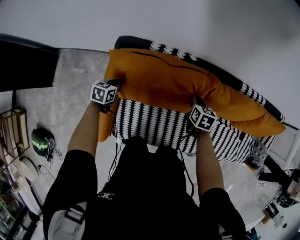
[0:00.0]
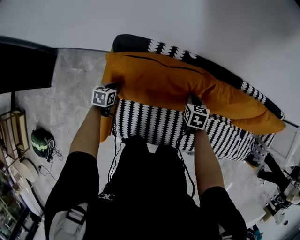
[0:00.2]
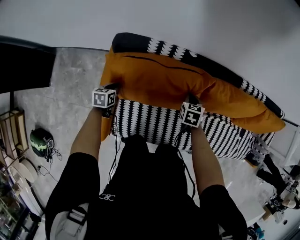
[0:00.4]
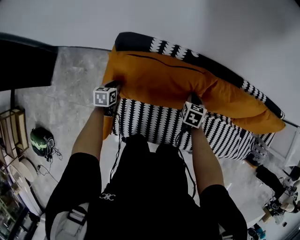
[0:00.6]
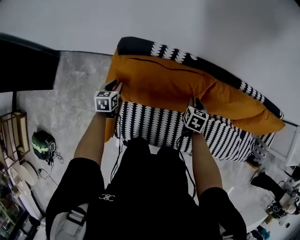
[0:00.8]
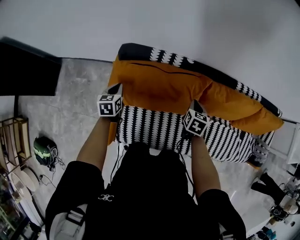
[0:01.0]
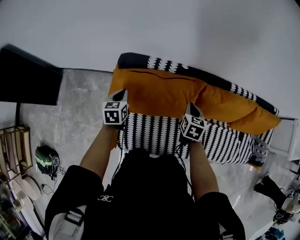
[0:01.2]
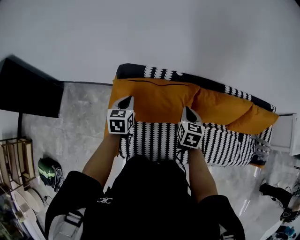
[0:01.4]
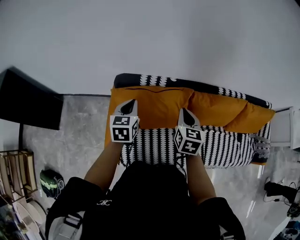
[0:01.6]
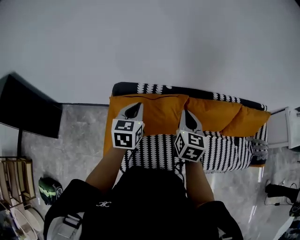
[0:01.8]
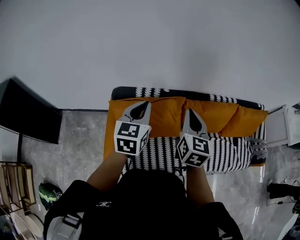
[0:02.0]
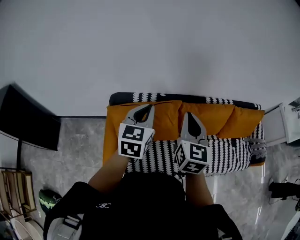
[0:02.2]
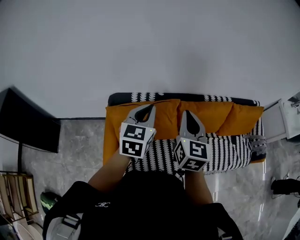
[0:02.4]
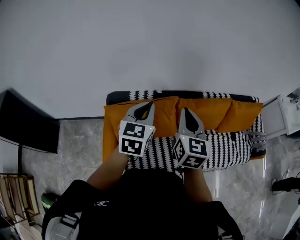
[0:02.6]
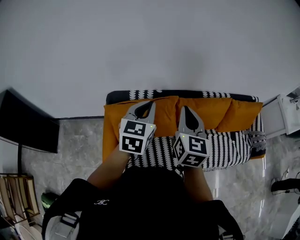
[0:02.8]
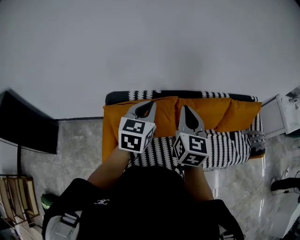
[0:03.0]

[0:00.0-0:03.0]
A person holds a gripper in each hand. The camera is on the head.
0:00.0 to 0:01.6: The left gripper goes about 30 cm upward, and swivels roughly 30 degrees. Meanwhile the right gripper moves upward and backward, some 25 cm, turns by roughly 20 degrees, and opens, then closes again.
0:01.6 to 0:03.0: The left gripper travels upward and to the right by about 20 cm, and swivels about 20 degrees. The right gripper travels upward by approximately 15 cm, and changes its angle by approximately 20 degrees.

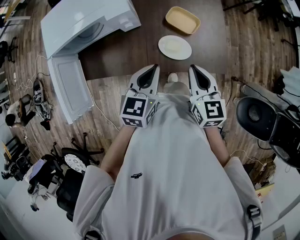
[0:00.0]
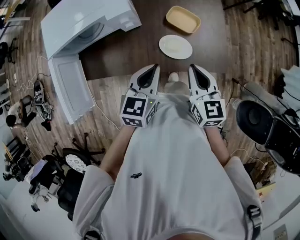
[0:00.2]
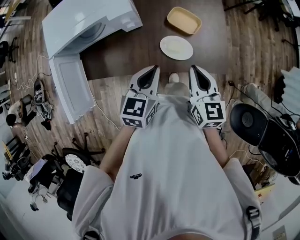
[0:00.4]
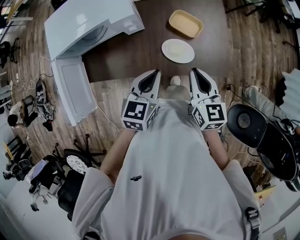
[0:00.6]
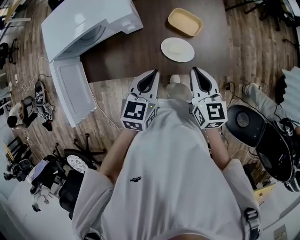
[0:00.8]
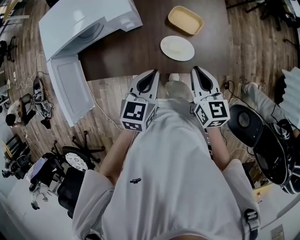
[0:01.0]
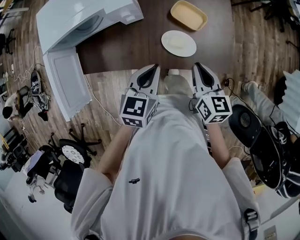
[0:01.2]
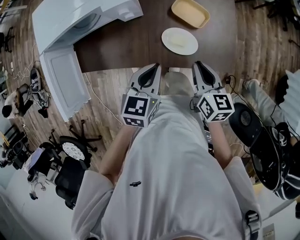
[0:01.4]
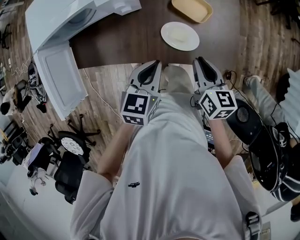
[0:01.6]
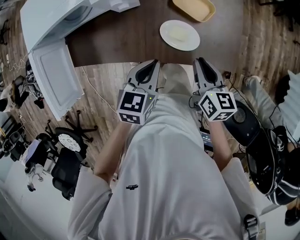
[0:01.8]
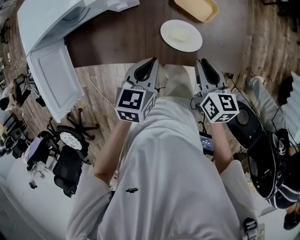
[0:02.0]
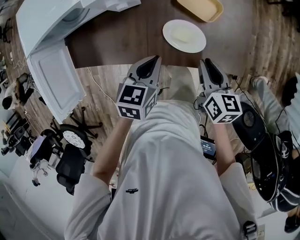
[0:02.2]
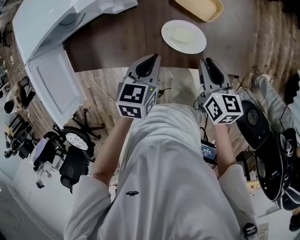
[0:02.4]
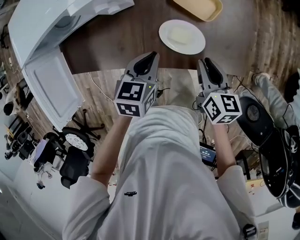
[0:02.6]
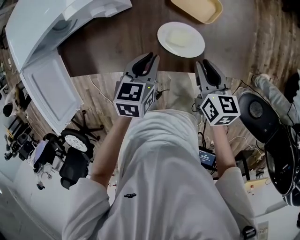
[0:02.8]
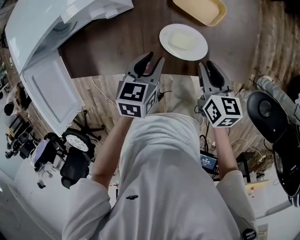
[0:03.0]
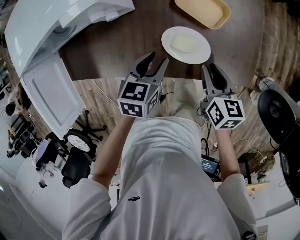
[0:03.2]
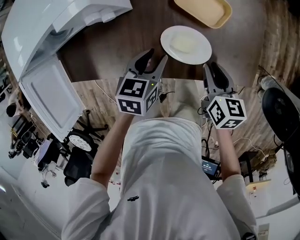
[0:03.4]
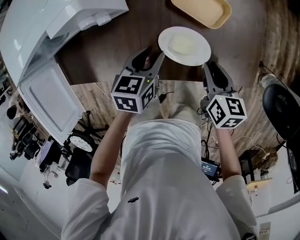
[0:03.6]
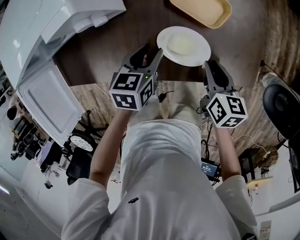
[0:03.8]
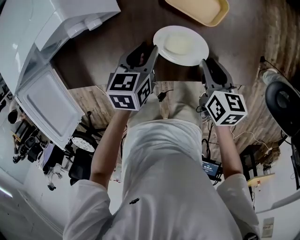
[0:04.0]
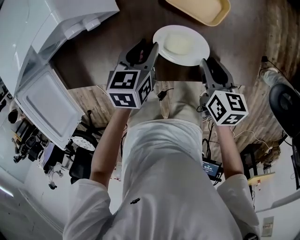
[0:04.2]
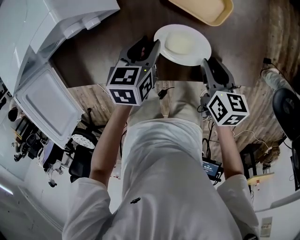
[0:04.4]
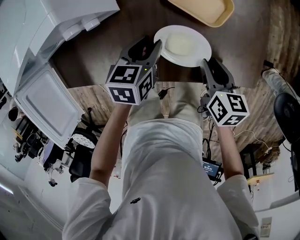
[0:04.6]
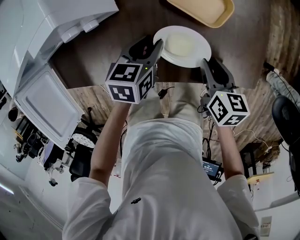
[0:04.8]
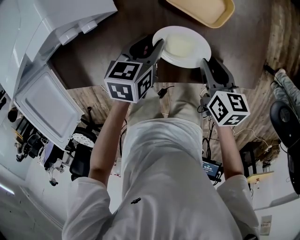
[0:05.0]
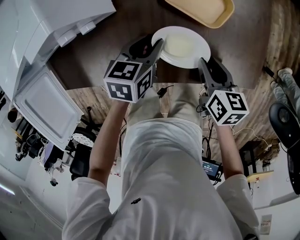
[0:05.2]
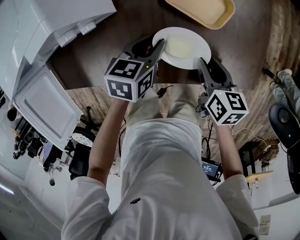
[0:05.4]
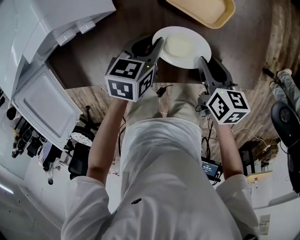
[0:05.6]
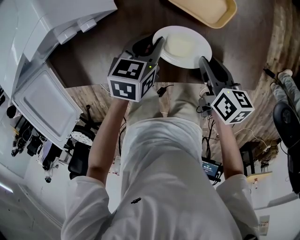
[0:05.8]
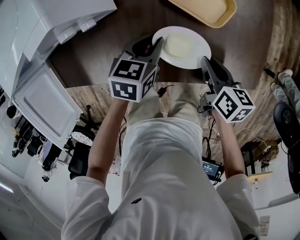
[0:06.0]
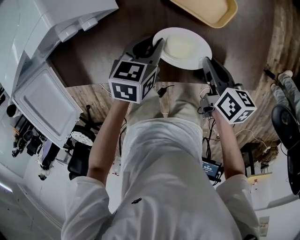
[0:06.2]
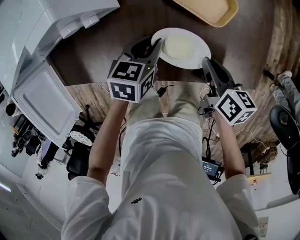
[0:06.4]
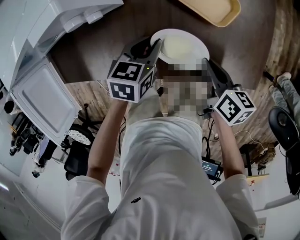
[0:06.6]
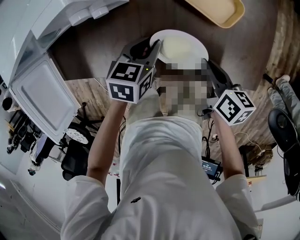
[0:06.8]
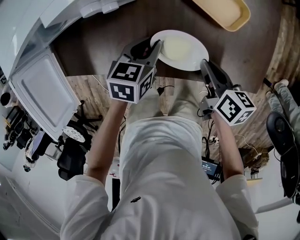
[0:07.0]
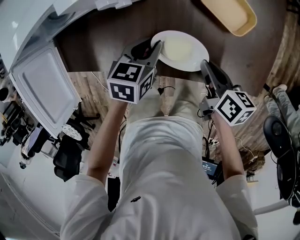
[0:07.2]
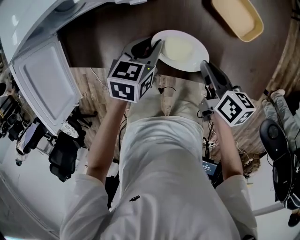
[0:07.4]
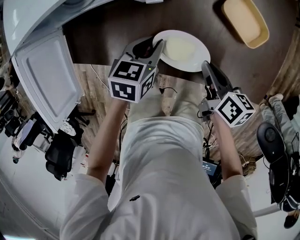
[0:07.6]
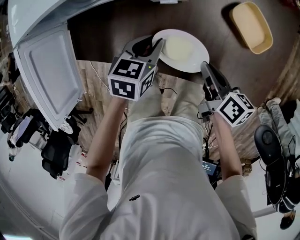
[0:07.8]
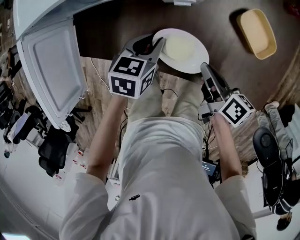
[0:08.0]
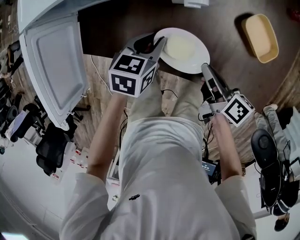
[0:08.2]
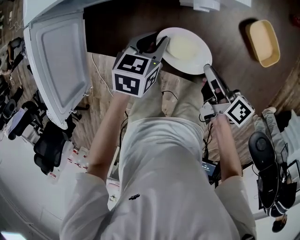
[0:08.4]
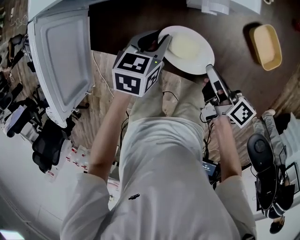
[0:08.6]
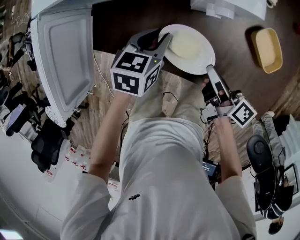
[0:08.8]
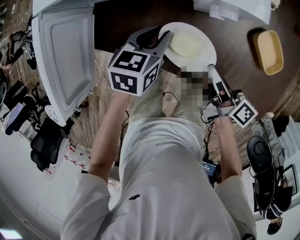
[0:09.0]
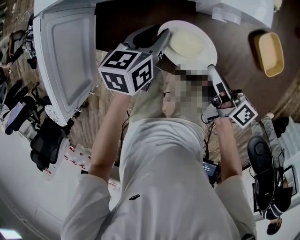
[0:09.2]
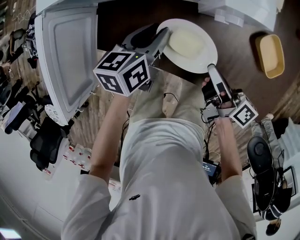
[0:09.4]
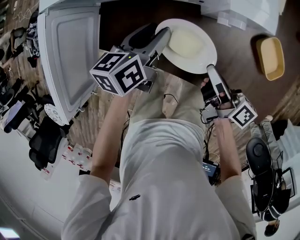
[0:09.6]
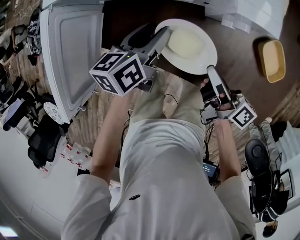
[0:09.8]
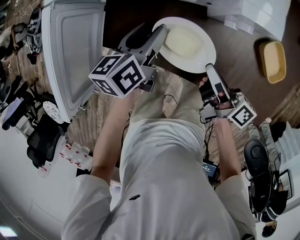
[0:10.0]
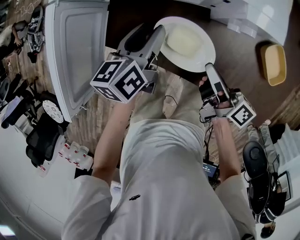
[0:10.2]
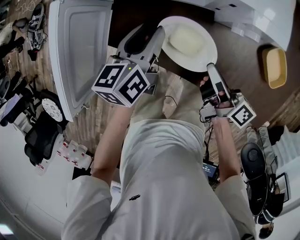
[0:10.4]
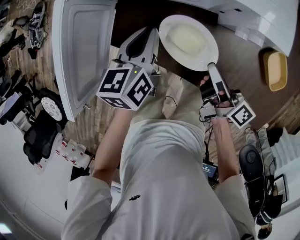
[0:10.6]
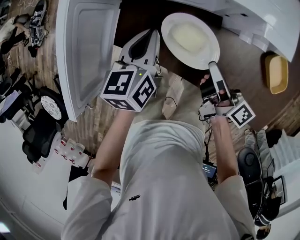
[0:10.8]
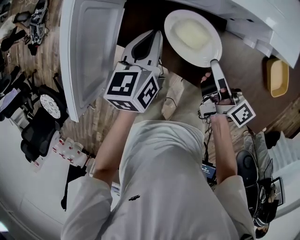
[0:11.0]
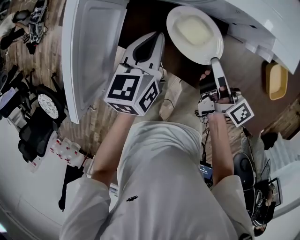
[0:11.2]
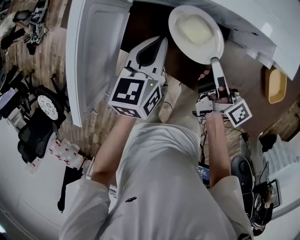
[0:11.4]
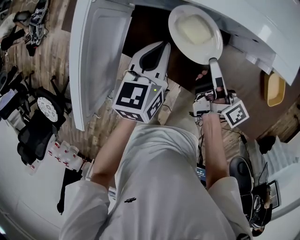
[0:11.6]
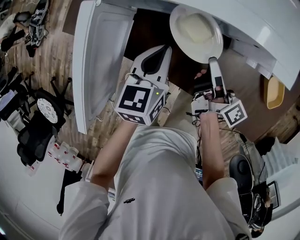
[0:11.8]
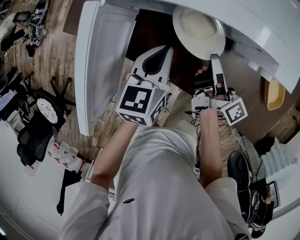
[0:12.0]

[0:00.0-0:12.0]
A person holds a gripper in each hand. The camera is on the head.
0:00.0 to 0:01.6: Both grippers move downward, some 10 cm.
0:01.6 to 0:03.0: Both grippers move downward, about 10 cm. The left gripper opens.
0:03.0 to 0:04.4: The right gripper is displaced downward by approximately 5 cm. The left gripper heads downward and forward, covering approximately 10 cm.
0:04.4 to 0:06.0: The grippers stay close to where they were, moving slightly.
0:06.0 to 0:07.6: Both grippers move to the left, about 10 cm.
0:07.6 to 0:09.0: The left gripper shifts some 5 cm to the left. The right gripper heads to the left and upward, covering about 10 cm, and rotates approximately 30 degrees.
0:09.0 to 0:10.4: The left gripper travels to the left and upward by some 10 cm, and changes its angle by approximately 30 degrees. Meanwhile the right gripper shifts about 5 cm to the left.
0:10.4 to 0:12.0: The left gripper closes up, while the right gripper is displaced forward and to the left by about 10 cm.

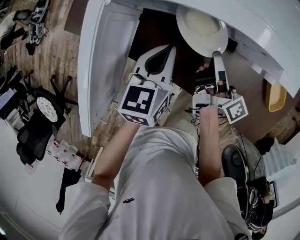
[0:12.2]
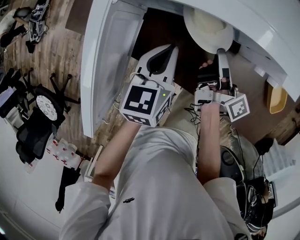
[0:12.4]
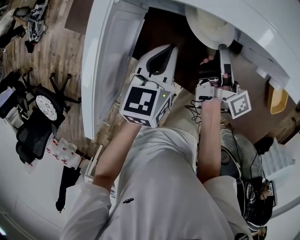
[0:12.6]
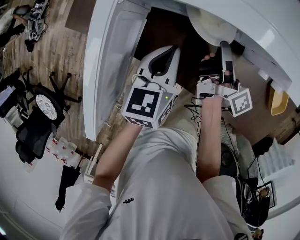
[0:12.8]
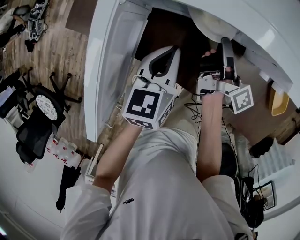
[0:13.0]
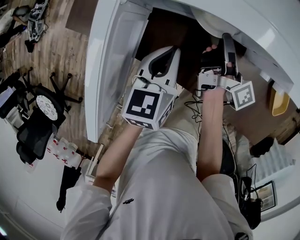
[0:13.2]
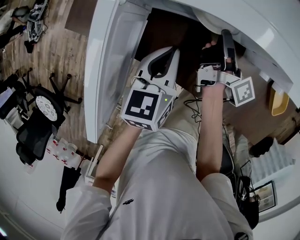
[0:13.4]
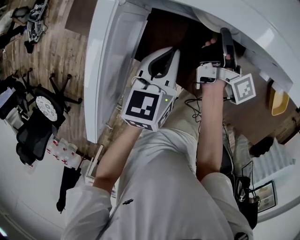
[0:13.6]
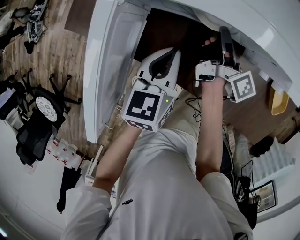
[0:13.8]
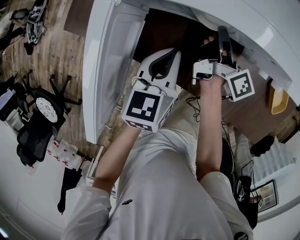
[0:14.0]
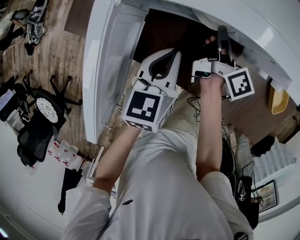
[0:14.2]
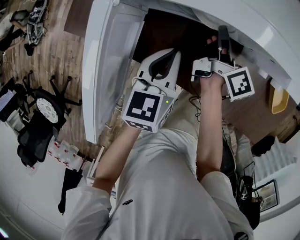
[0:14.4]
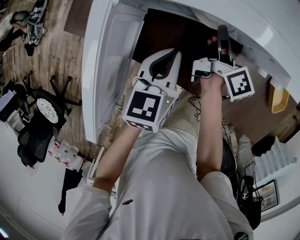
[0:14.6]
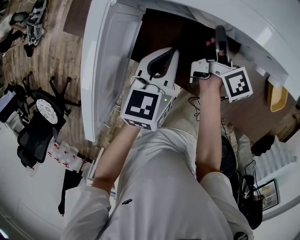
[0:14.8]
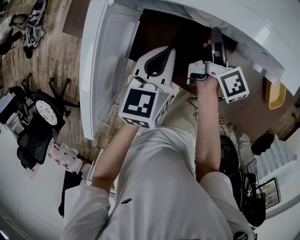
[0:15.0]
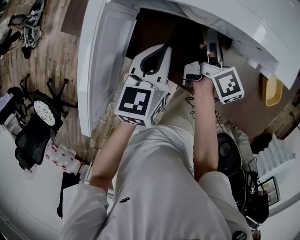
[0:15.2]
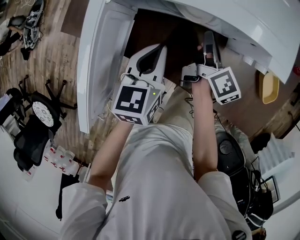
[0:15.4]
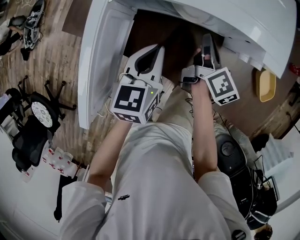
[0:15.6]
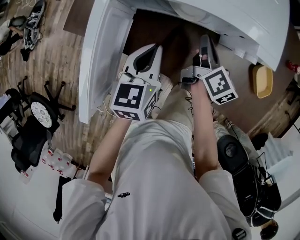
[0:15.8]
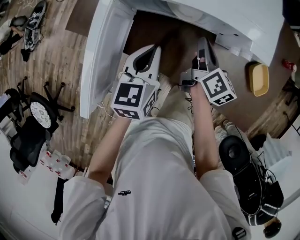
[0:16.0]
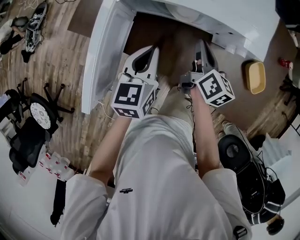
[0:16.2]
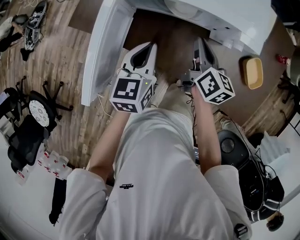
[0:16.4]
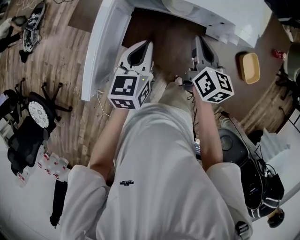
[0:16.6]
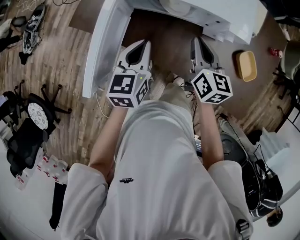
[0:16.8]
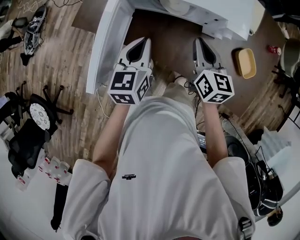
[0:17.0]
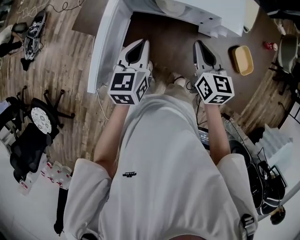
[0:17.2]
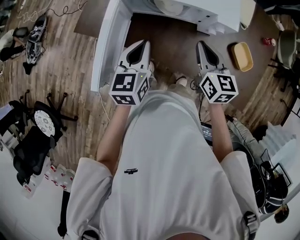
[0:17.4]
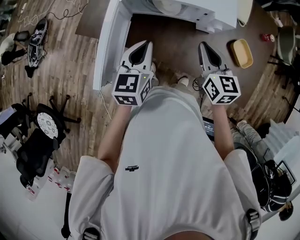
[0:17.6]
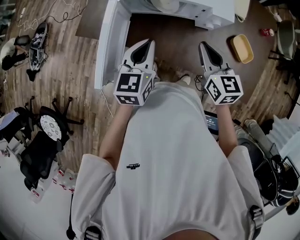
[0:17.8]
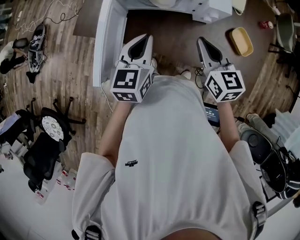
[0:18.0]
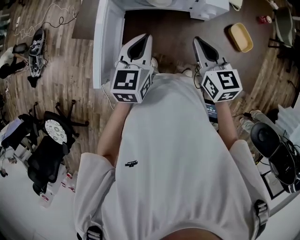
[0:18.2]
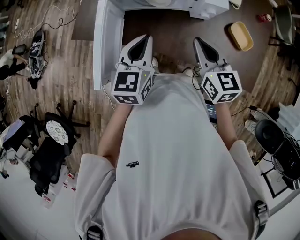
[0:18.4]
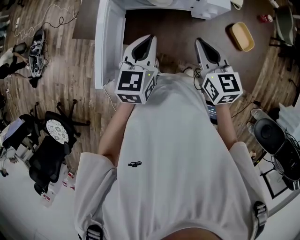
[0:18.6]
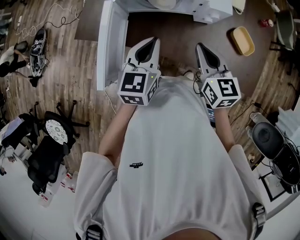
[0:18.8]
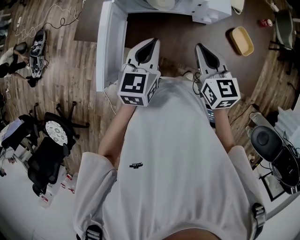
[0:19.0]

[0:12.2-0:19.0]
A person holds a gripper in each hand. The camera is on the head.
0:12.2 to 0:13.6: The right gripper shifts approximately 5 cm forward.
0:13.6 to 0:15.0: The right gripper changes its angle by some 20 degrees.
0:15.0 to 0:16.2: The left gripper shifts some 5 cm upward; the right gripper is displaced upward and backward by about 10 cm, and closes.
0:16.2 to 0:17.6: The right gripper goes some 15 cm upward and backward, and changes its angle by some 30 degrees. Meanwhile the left gripper heads upward, covering about 5 cm.
0:17.6 to 0:19.0: The grippers make only small movements.

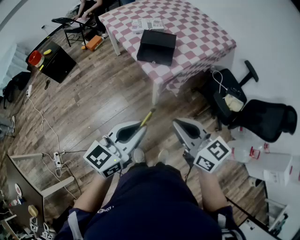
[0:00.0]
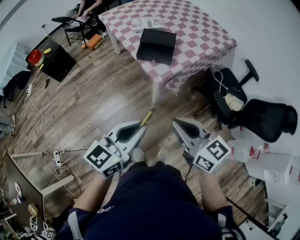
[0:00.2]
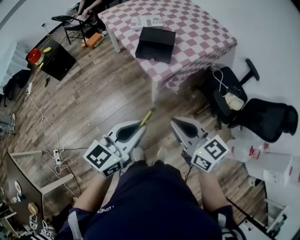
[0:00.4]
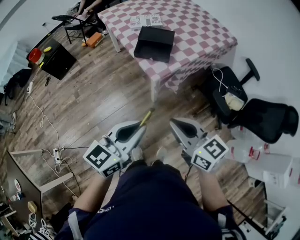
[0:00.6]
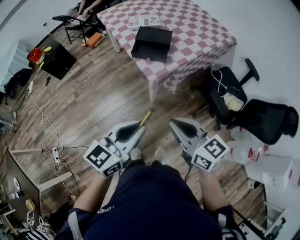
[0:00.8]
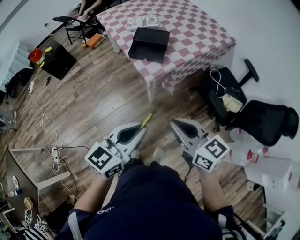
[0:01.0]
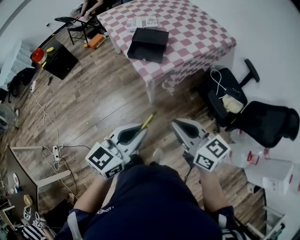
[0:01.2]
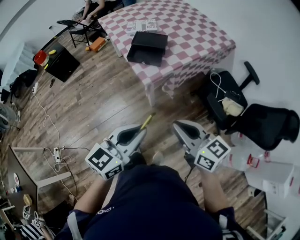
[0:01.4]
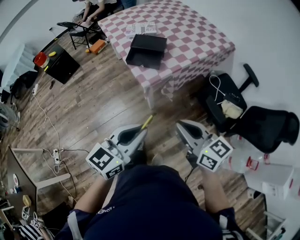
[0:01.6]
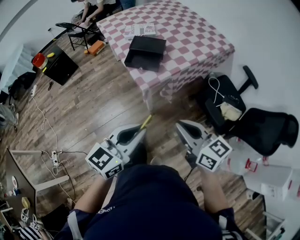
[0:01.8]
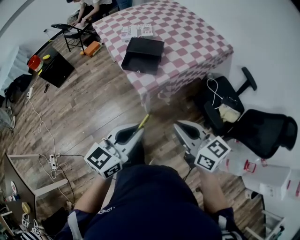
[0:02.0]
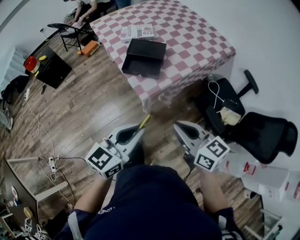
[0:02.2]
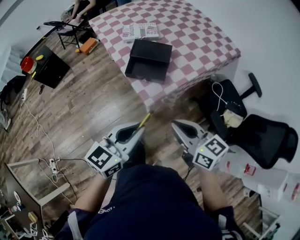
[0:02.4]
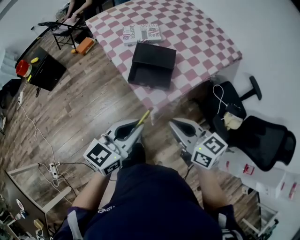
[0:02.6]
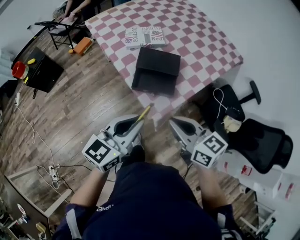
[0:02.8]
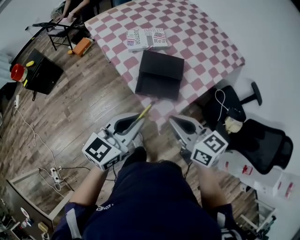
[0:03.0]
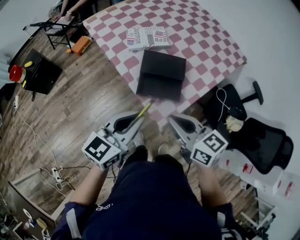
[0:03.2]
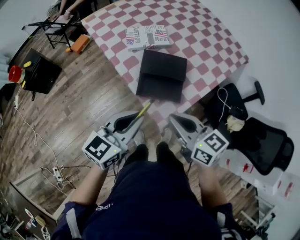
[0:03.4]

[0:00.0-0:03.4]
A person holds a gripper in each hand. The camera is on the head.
0:00.0 to 0:01.6: Both grippers travel together to the right, approximately 15 cm.
0:01.6 to 0:03.4: Both grippers move forward and to the left, about 40 cm.
